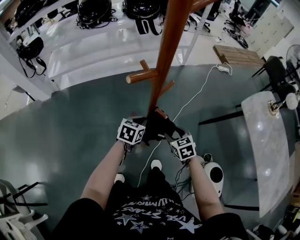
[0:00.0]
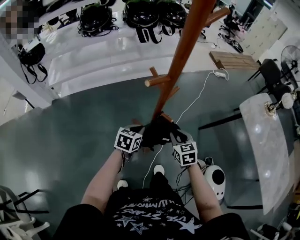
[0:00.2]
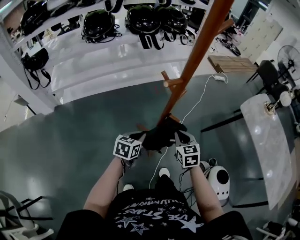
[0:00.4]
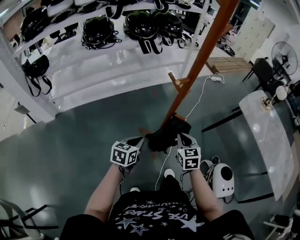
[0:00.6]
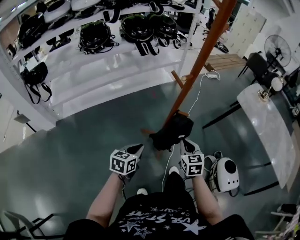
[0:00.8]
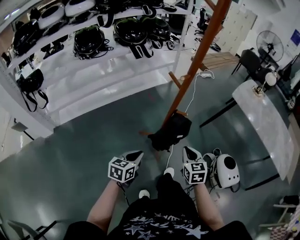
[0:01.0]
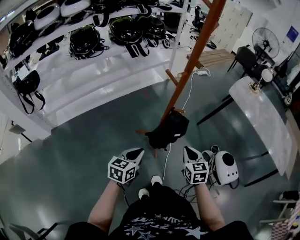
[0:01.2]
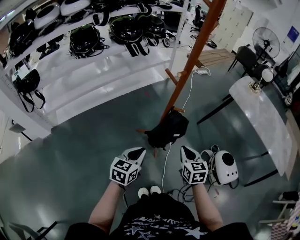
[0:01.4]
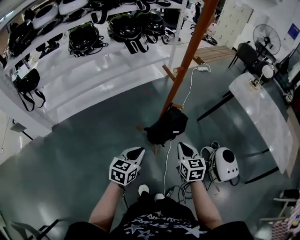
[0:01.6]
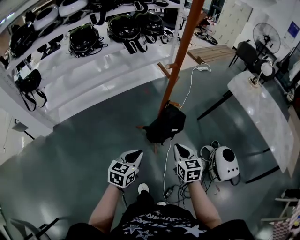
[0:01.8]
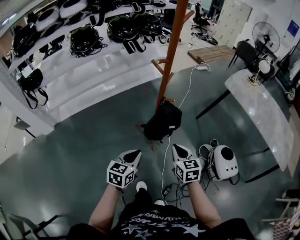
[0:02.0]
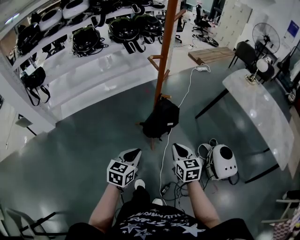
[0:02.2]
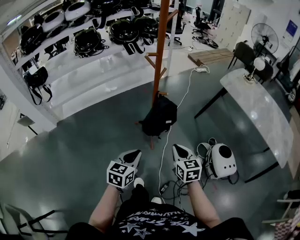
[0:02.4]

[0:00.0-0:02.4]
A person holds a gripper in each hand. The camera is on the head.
0.0 to 1.2 s: The left gripper heads backward, to the left and upward, covering approximately 30 cm, and changes its angle by roughly 20 degrees; the right gripper travels backward and upward by some 25 cm, turns by roughly 40 degrees, and closes up.
1.2 to 2.4 s: Both grippers travel together backward and to the right, roughly 15 cm.

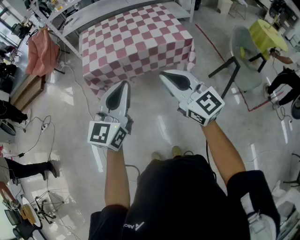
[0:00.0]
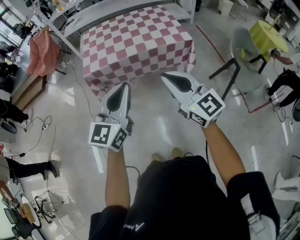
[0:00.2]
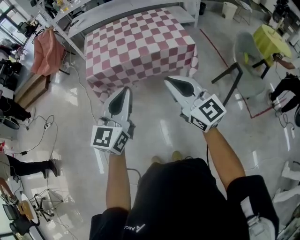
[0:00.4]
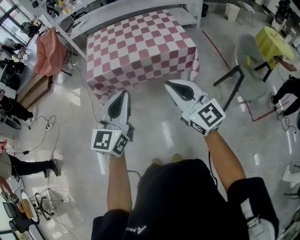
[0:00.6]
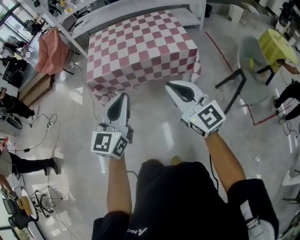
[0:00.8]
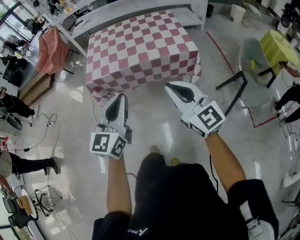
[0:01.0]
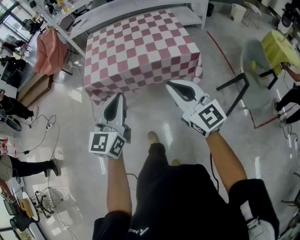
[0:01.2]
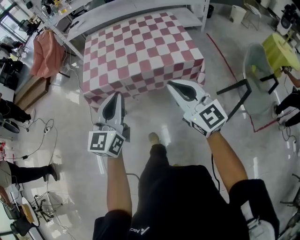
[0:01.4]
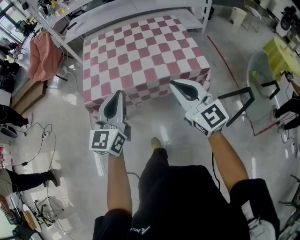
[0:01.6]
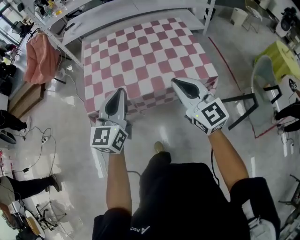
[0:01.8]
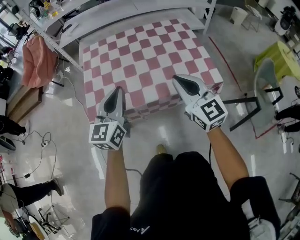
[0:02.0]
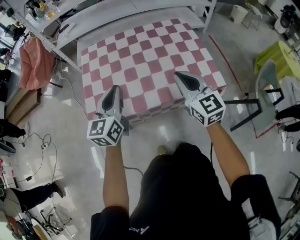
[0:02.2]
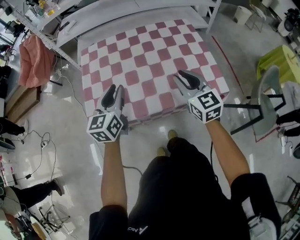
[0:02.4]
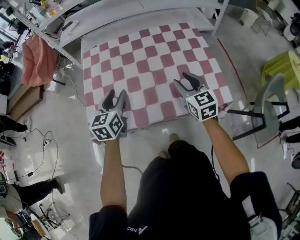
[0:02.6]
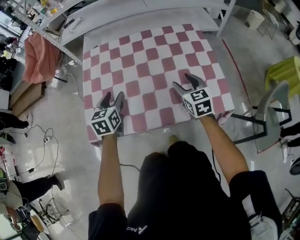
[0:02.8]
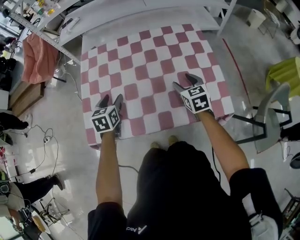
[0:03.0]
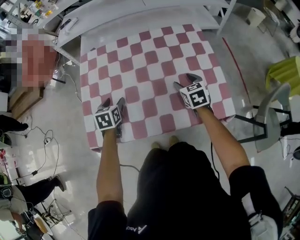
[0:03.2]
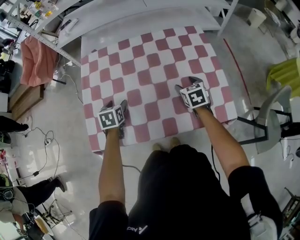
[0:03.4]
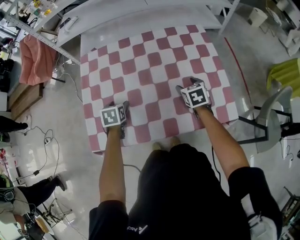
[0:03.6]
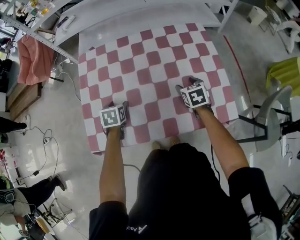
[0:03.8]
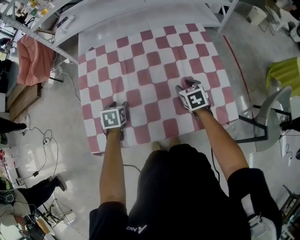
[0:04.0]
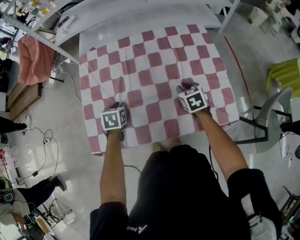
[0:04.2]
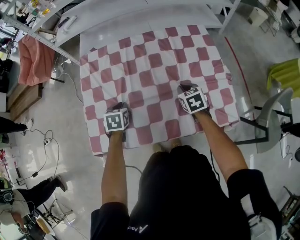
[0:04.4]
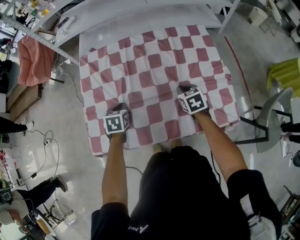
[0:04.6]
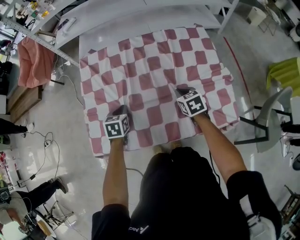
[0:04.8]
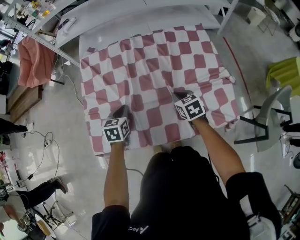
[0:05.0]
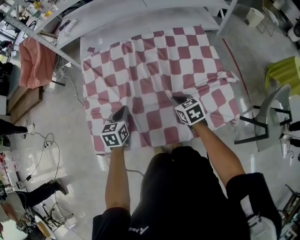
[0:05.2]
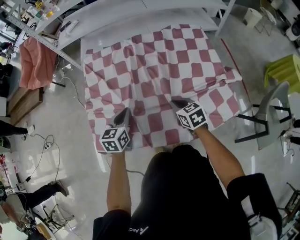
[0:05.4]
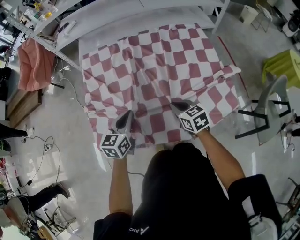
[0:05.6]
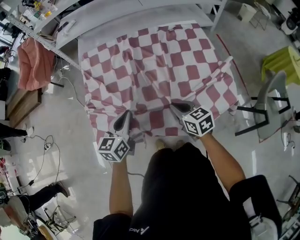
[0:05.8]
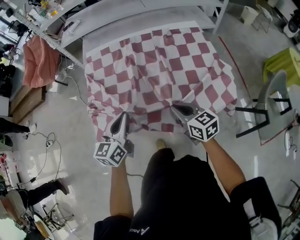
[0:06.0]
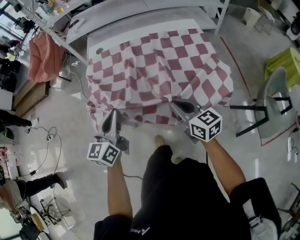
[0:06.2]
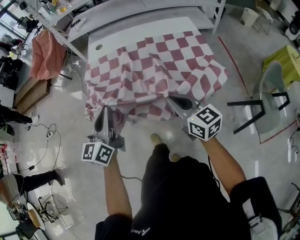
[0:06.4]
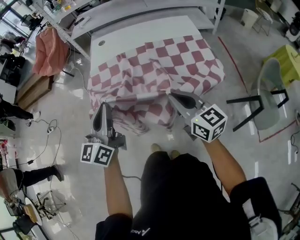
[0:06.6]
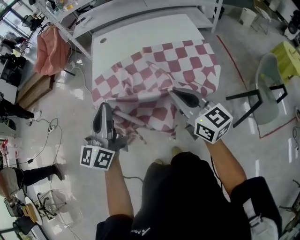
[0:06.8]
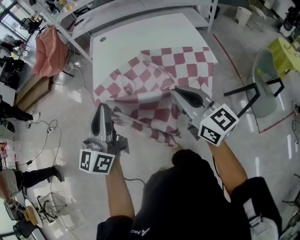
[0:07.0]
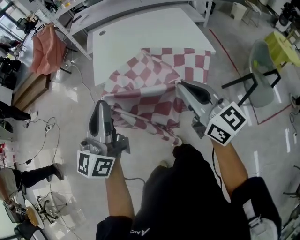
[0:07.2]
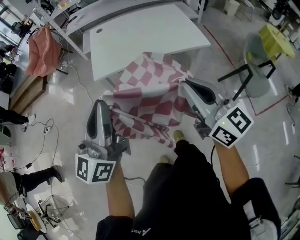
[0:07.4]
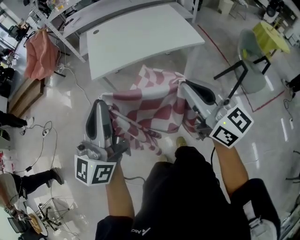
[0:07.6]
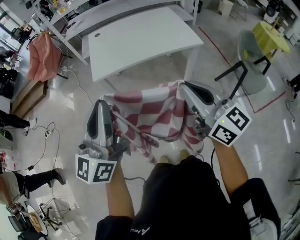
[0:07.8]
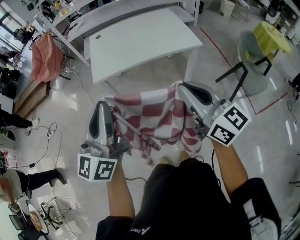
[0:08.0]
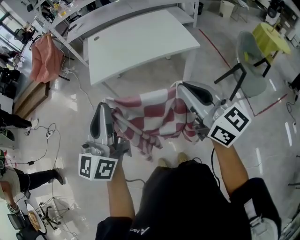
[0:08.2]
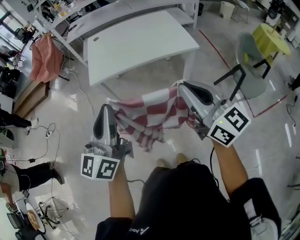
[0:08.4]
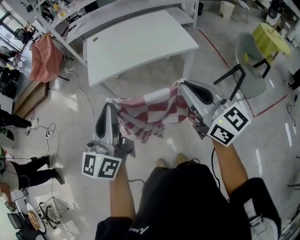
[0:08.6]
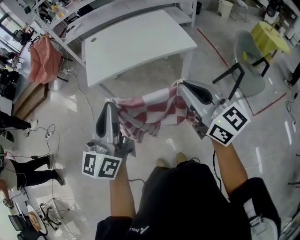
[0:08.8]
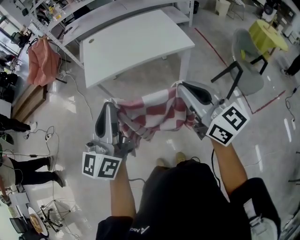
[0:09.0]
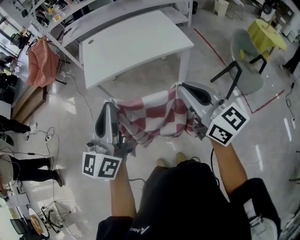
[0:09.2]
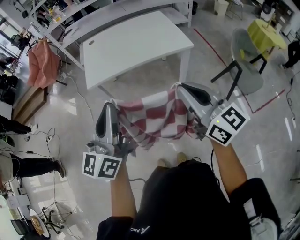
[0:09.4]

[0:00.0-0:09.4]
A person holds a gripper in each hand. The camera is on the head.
0.0 to 1.6 s: The right gripper shifts approximately 5 cm forward, and travels to the right and back again, some 5 cm each way. Meanwhile the left gripper goes some 10 cm forward, downward and to the left.
1.6 to 3.2 s: Both grippers travel together forward and downward, some 35 cm. The left gripper tips its fingers downward by about 50 degrees, and opens up. The right gripper points its fingers some 40 degrees further downward, and opens.
3.2 to 4.8 s: The left gripper closes its fingers; the right gripper changes place by roughly 5 cm, and closes up.
4.8 to 6.2 s: The right gripper is displaced backward and upward by about 20 cm, and tips its fingers upward by approximately 30 degrees, while the left gripper shifts roughly 25 cm upward and backward, and tilts its fingers some 40 degrees upward.
6.2 to 7.8 s: Both grippers travel together backward and upward, some 35 cm. The left gripper swivels some 20 degrees. Meanwhile the right gripper turns by some 20 degrees.
7.8 to 9.4 s: The left gripper changes place by roughly 5 cm.

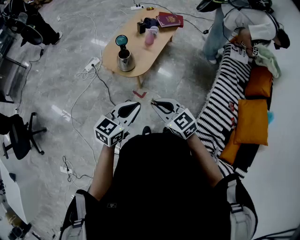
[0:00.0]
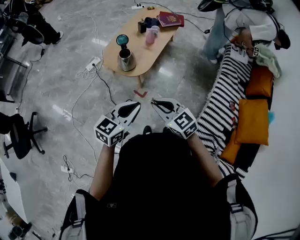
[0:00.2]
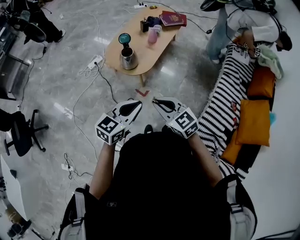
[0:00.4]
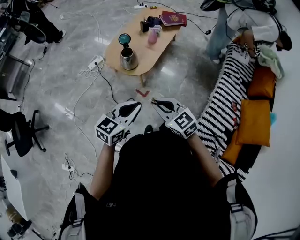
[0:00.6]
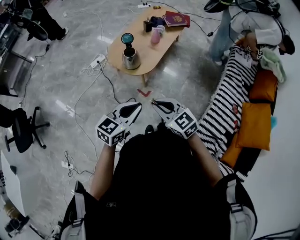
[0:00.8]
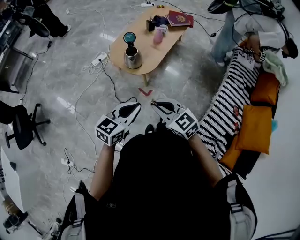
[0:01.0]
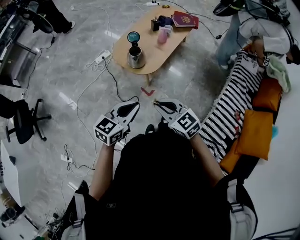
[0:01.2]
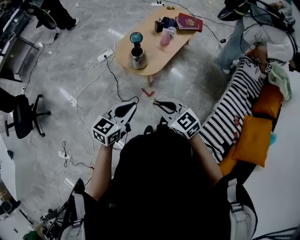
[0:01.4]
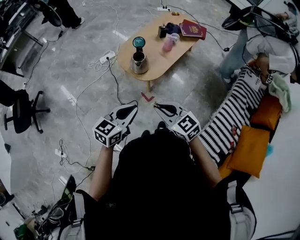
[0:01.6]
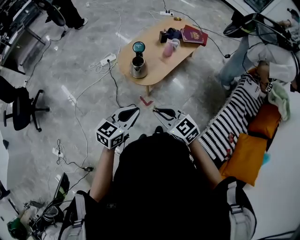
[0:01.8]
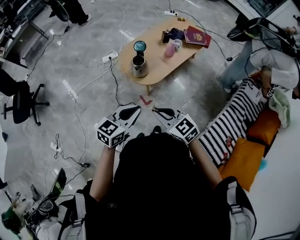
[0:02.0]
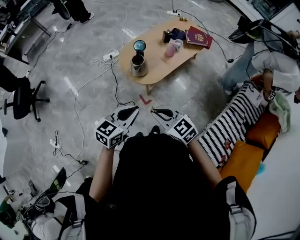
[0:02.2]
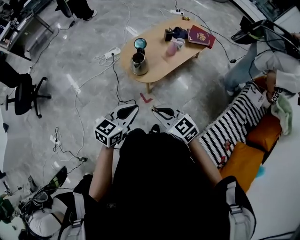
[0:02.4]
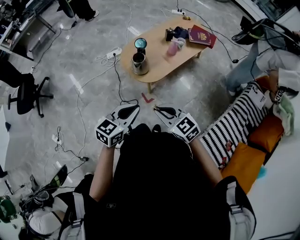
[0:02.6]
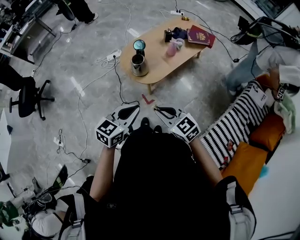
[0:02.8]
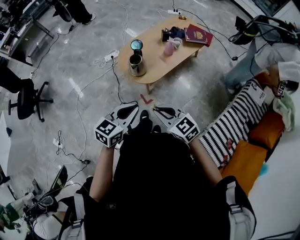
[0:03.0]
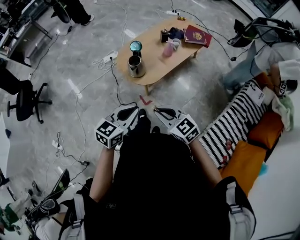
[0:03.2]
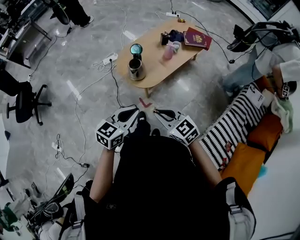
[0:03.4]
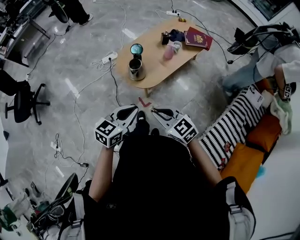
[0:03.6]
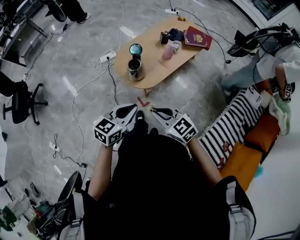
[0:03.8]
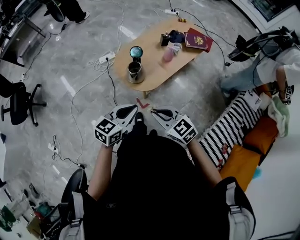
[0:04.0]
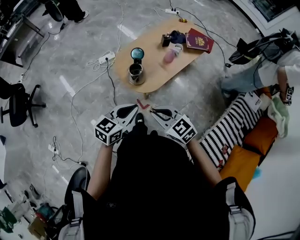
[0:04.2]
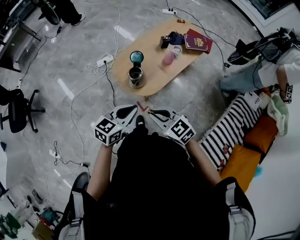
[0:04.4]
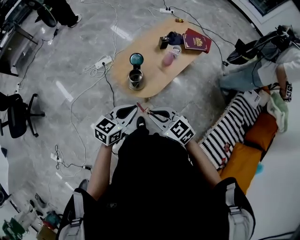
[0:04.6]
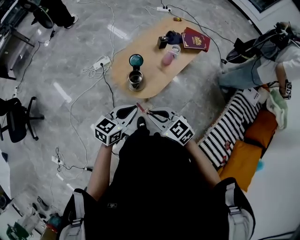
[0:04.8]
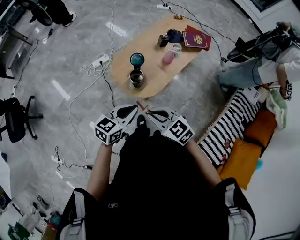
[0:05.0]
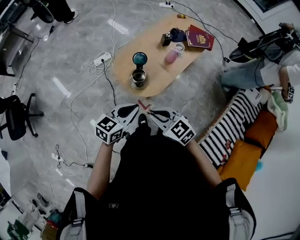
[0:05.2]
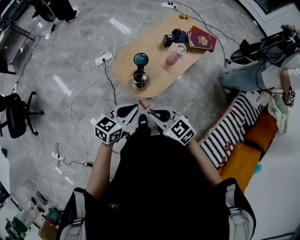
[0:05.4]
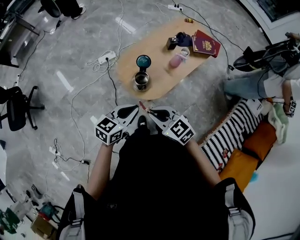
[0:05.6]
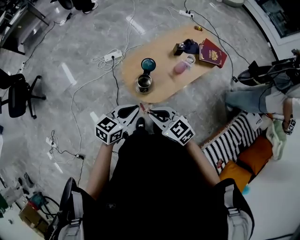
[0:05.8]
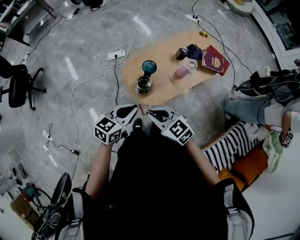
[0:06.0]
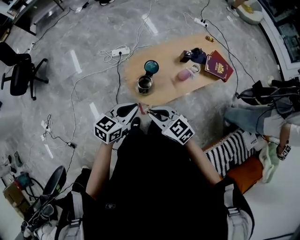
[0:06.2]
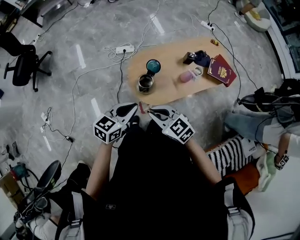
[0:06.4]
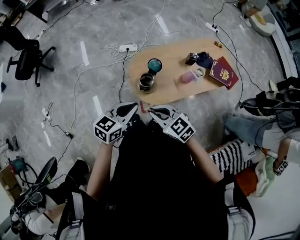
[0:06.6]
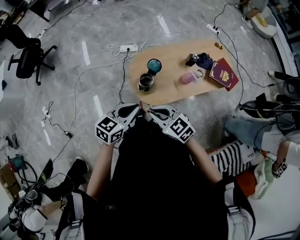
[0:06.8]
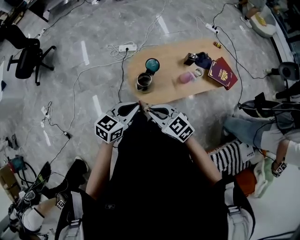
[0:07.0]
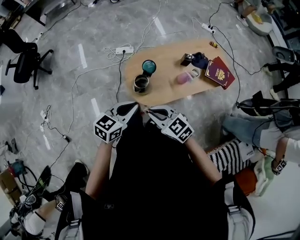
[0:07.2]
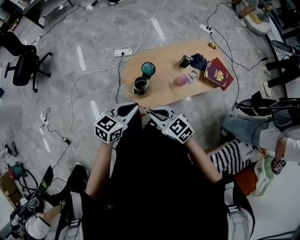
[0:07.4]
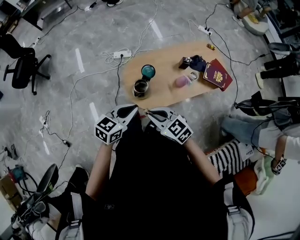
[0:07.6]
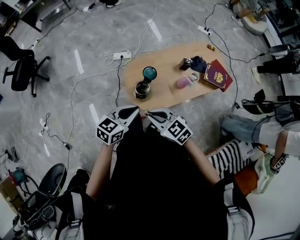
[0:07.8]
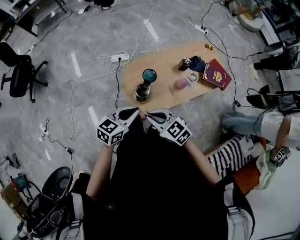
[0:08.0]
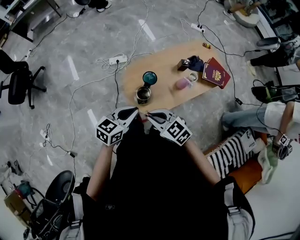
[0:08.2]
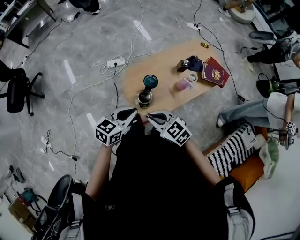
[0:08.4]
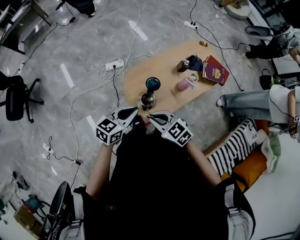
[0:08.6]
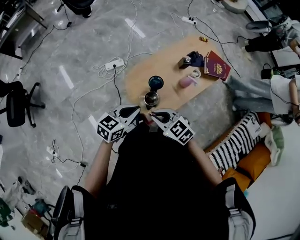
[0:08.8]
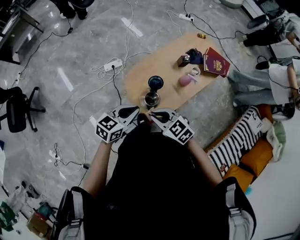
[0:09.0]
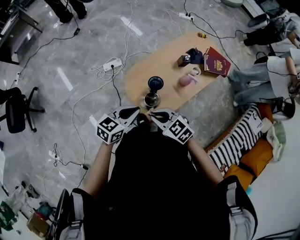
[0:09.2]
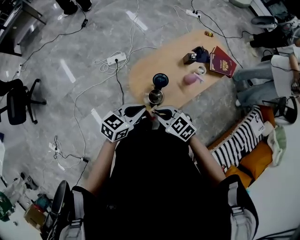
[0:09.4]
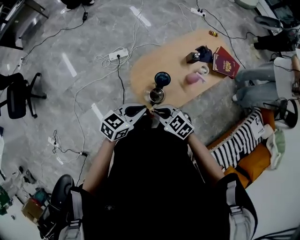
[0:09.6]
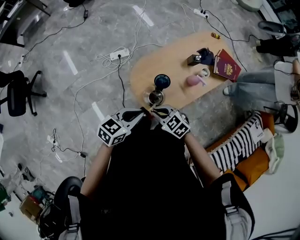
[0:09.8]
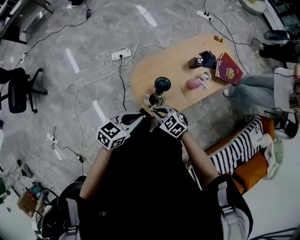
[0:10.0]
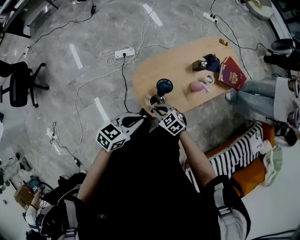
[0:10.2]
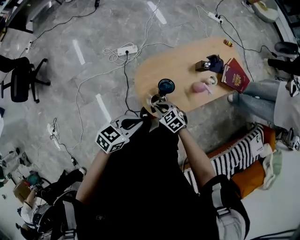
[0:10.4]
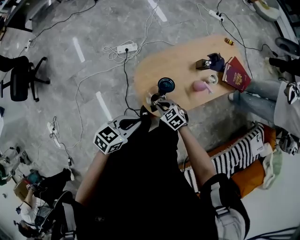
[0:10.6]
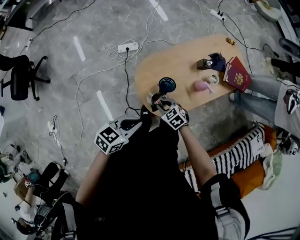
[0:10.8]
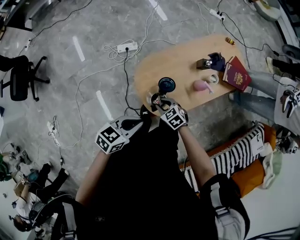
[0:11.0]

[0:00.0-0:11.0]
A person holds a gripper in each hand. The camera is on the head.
0.0 to 1.6 s: The grippers move only a little.
1.6 to 3.2 s: Both grippers travel together to the right, roughly 10 cm.
3.2 to 4.8 s: The left gripper shifts roughly 20 cm forward. The right gripper shifts about 20 cm forward and to the left.
4.8 to 6.2 s: The two grippers go roughly 5 cm forward. The left gripper swivels about 20 degrees, while the right gripper turns by some 20 degrees.
6.2 to 7.8 s: There are only small adjustments of the grippers.
7.8 to 9.4 s: The right gripper shifts by some 15 cm, while the left gripper ends up about 15 cm from where it was.
9.4 to 11.0 s: The right gripper shifts approximately 15 cm downward.

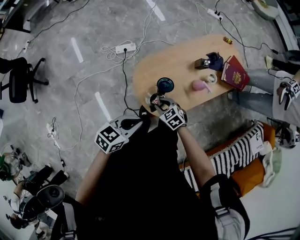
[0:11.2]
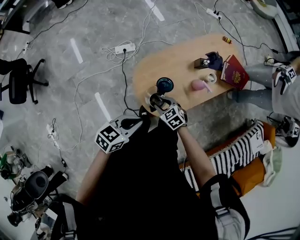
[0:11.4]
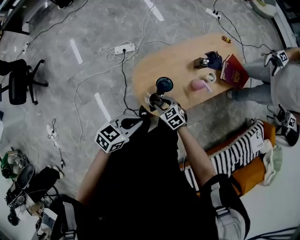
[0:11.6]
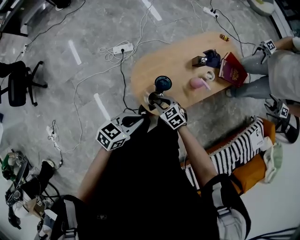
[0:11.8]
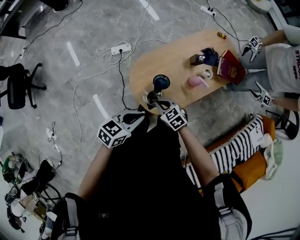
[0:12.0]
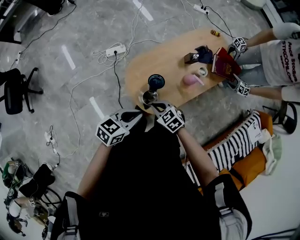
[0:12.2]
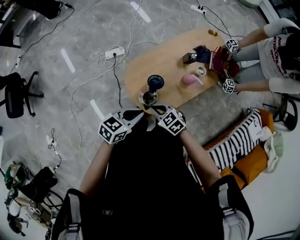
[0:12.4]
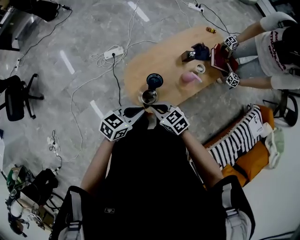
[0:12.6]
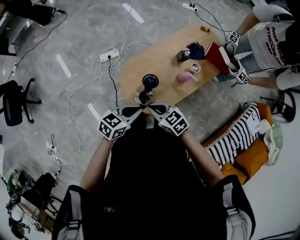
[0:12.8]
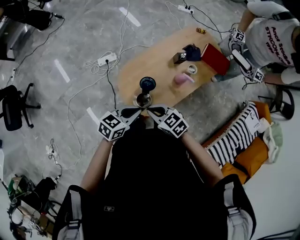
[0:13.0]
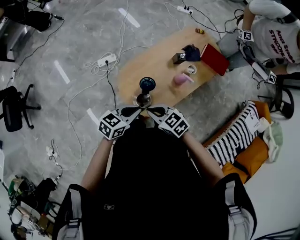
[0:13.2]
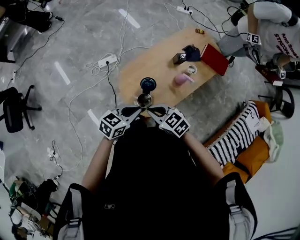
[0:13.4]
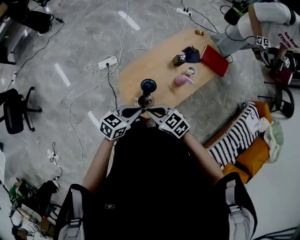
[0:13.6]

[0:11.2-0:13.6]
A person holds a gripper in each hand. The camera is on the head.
11.2 to 12.4 s: The right gripper goes about 10 cm upward, and closes.
12.4 to 13.6 s: The right gripper shifts about 10 cm upward.
